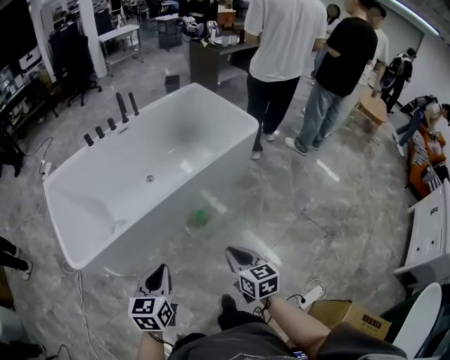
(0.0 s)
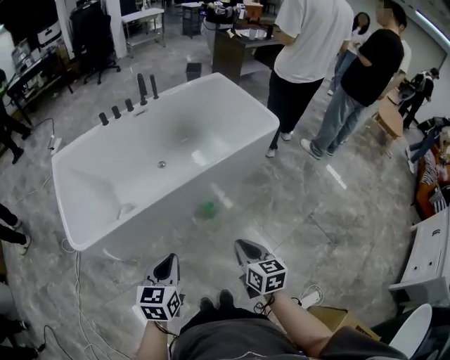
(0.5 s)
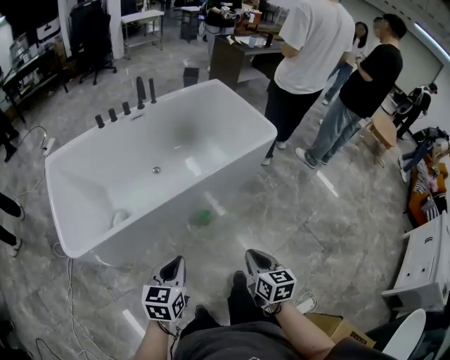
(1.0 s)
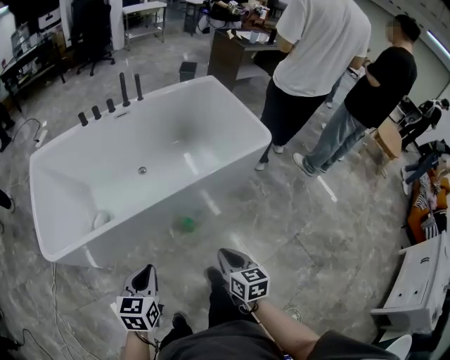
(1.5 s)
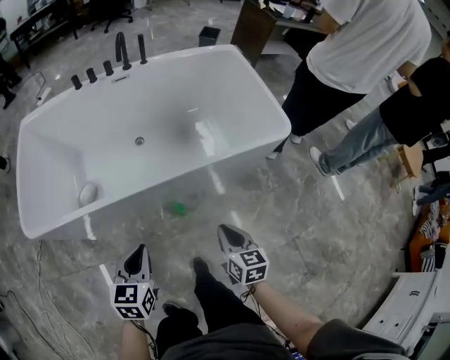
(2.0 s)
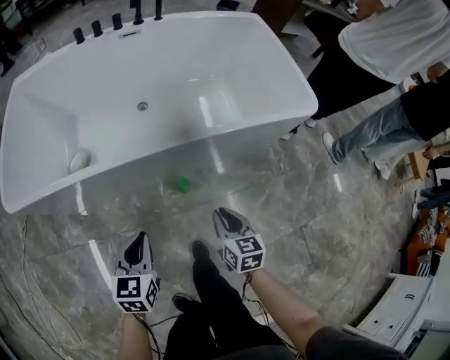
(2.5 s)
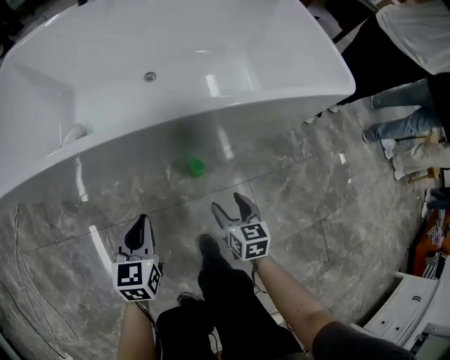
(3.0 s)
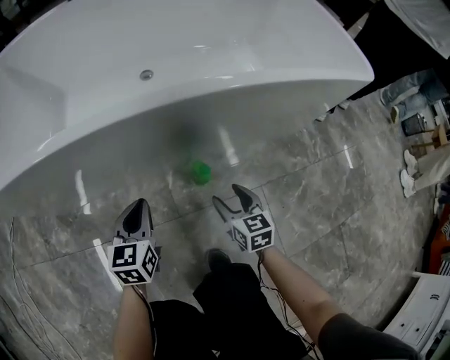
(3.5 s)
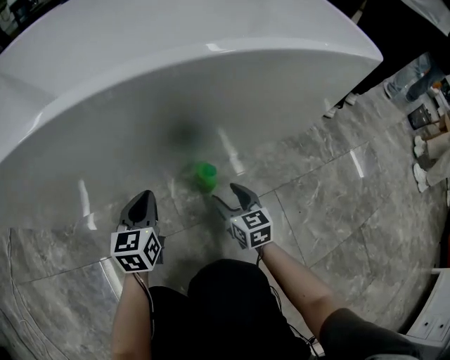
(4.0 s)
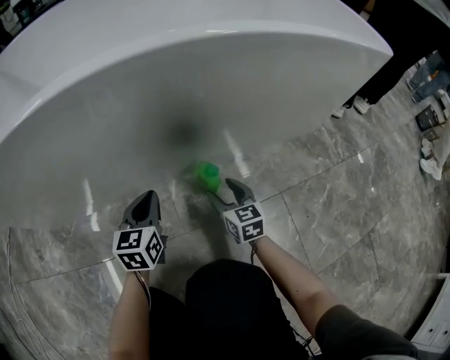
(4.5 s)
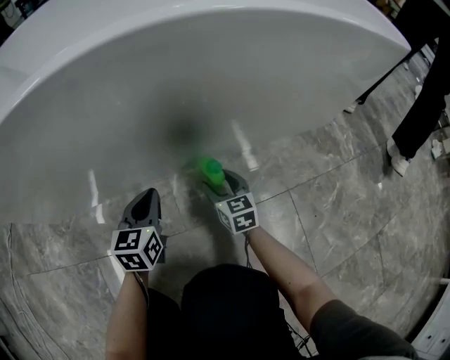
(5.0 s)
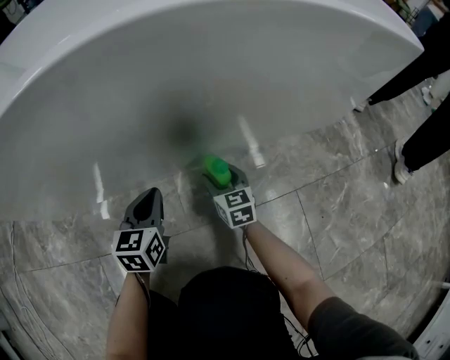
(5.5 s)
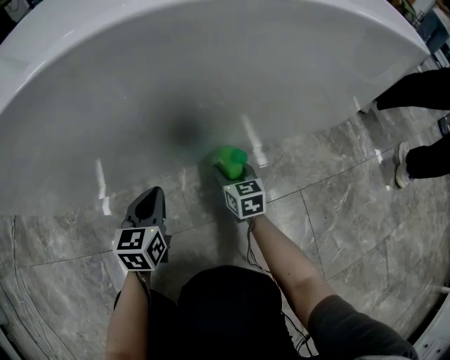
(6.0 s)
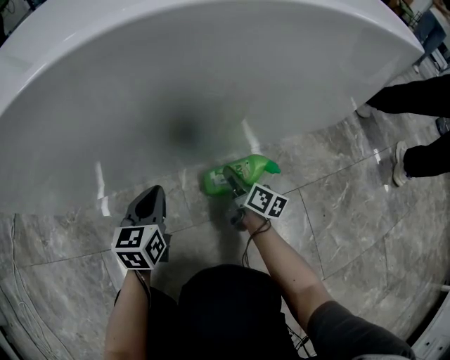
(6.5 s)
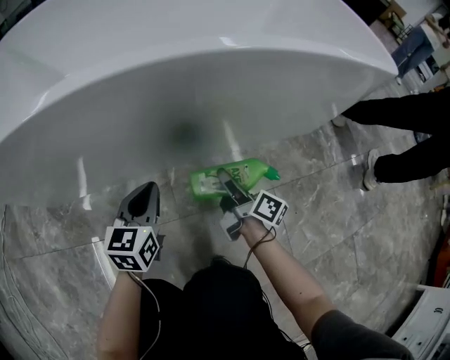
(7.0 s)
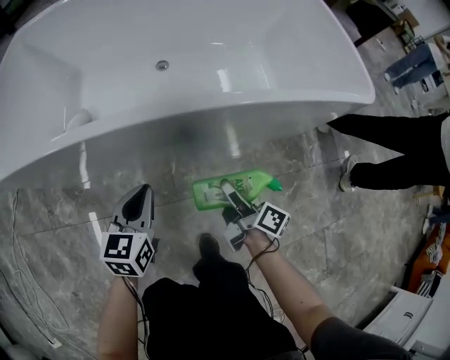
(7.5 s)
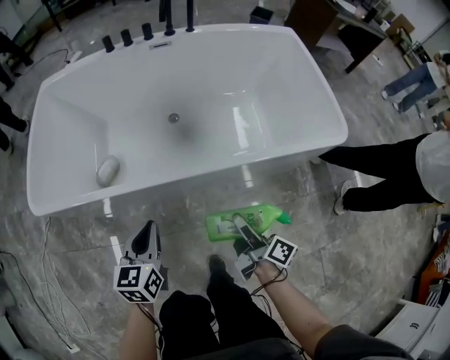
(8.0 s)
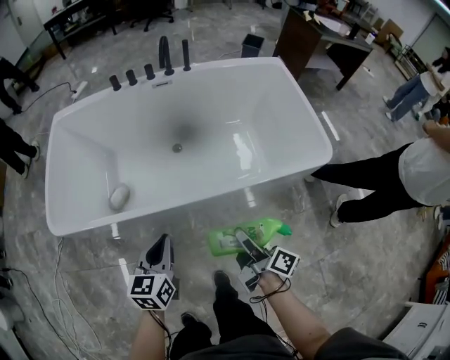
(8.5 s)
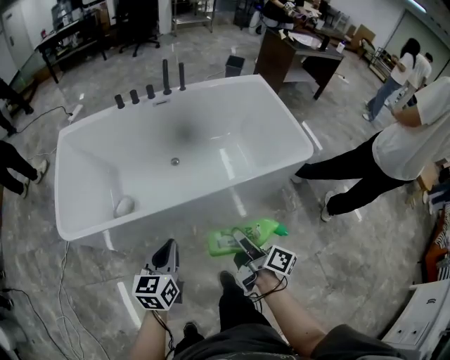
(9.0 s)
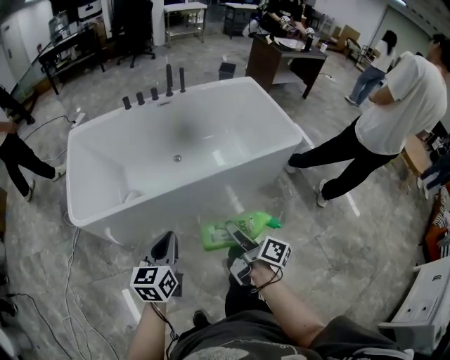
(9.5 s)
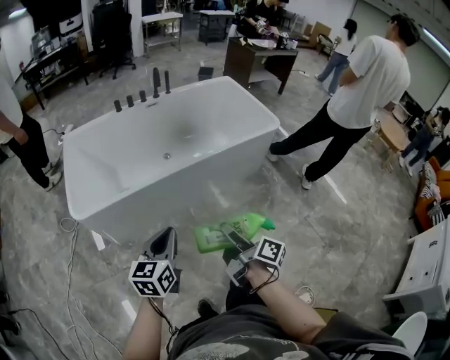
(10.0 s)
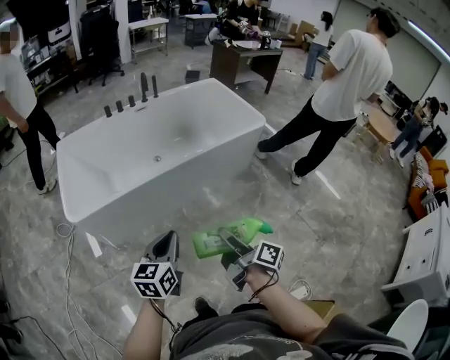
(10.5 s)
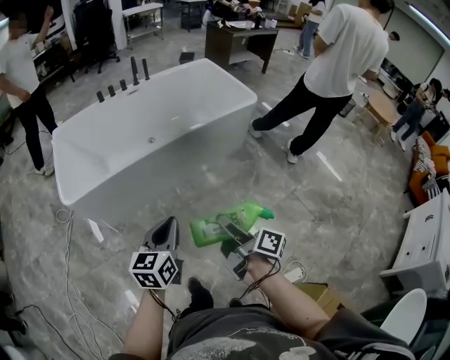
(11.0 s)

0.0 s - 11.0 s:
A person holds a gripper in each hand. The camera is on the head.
0.0 s - 2.0 s: The two grippers go about 30 cm forward, downward and to the right.
2.0 s - 3.5 s: Both grippers travel together downward, about 40 cm. The right gripper opens.
3.5 s - 5.5 s: The left gripper travels downward by roughly 15 cm; the right gripper moves downward and forward, some 25 cm.
5.5 s - 7.5 s: Both grippers travel together upward, some 30 cm. The right gripper rotates around the line of its fingers by about 60 degrees, clockwise from behind.
7.5 s - 9.0 s: Both grippers travel together upward, about 35 cm.
9.0 s - 11.0 s: The grippers both shift backward by about 35 cm.

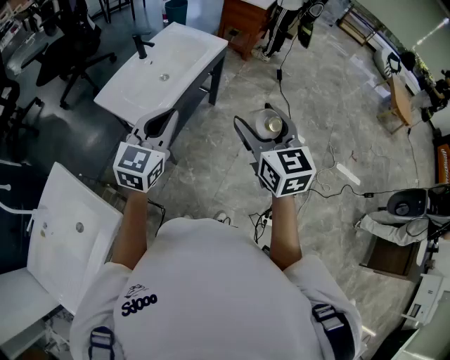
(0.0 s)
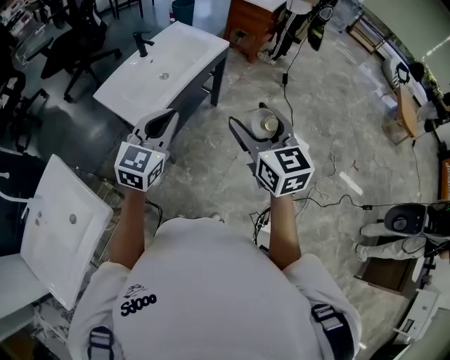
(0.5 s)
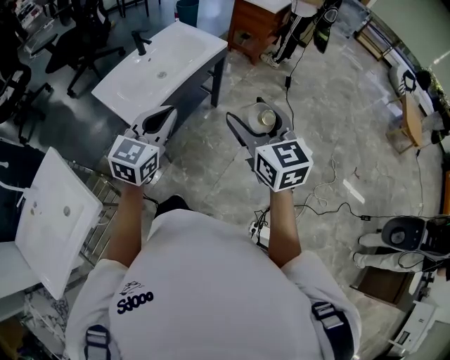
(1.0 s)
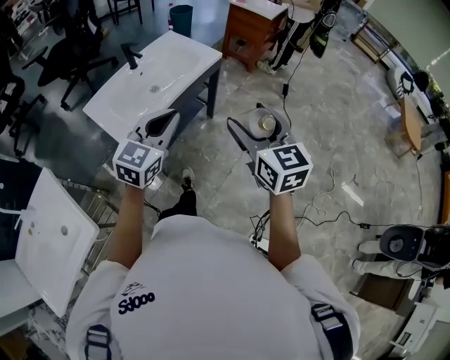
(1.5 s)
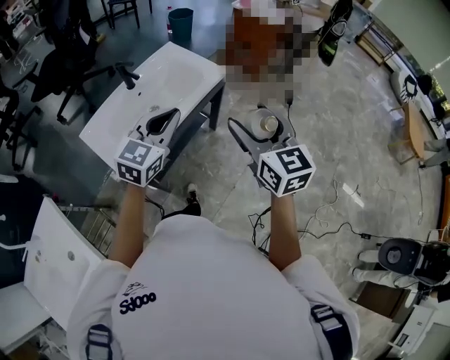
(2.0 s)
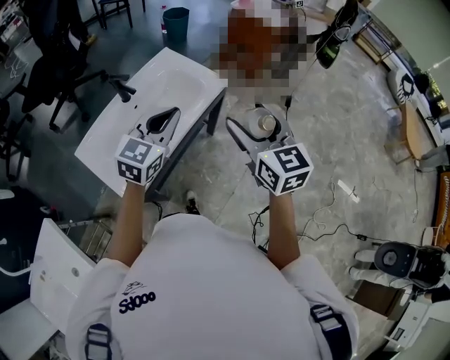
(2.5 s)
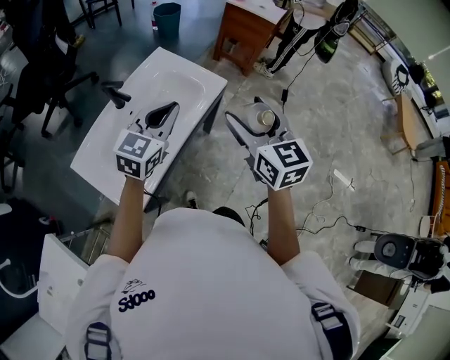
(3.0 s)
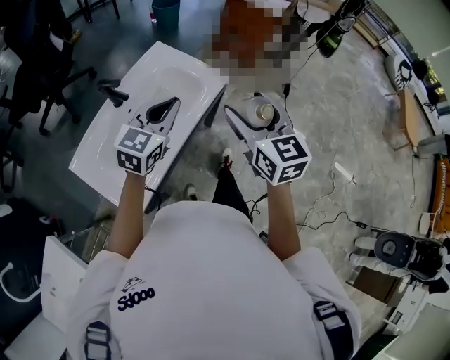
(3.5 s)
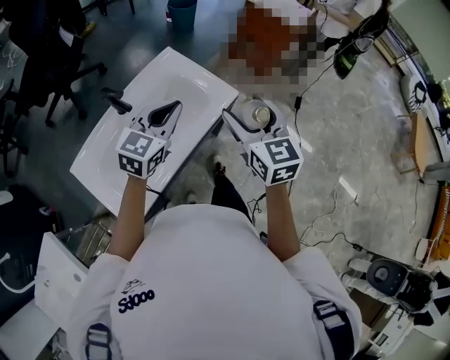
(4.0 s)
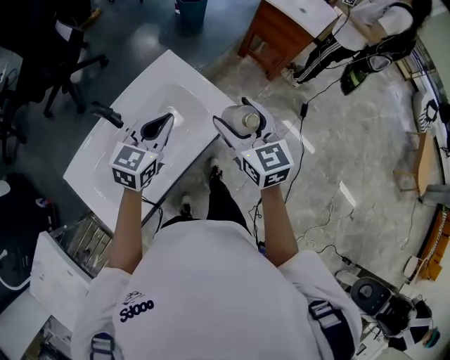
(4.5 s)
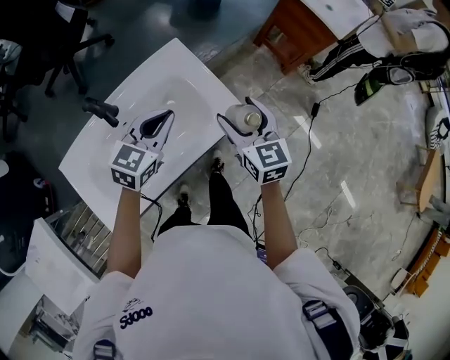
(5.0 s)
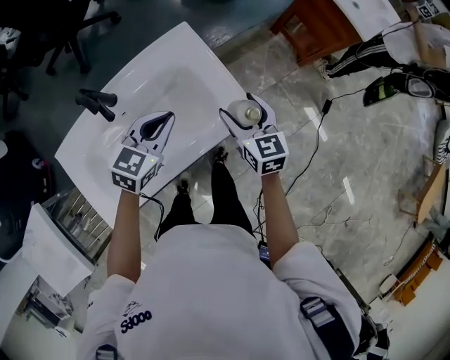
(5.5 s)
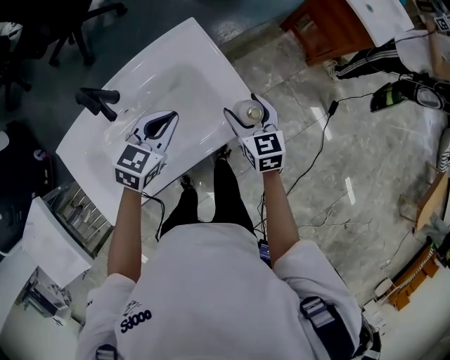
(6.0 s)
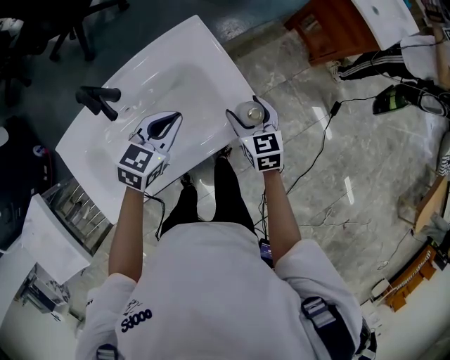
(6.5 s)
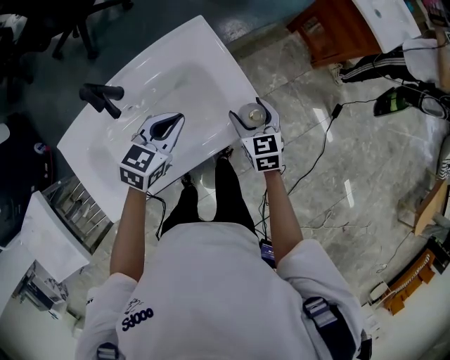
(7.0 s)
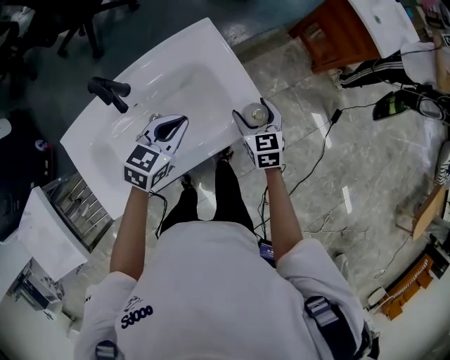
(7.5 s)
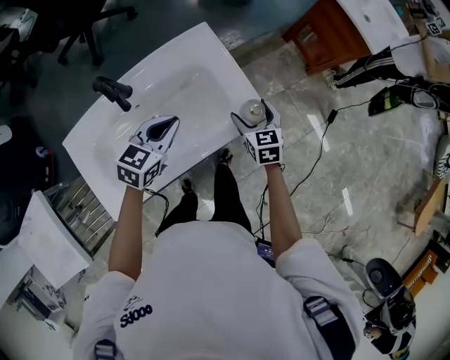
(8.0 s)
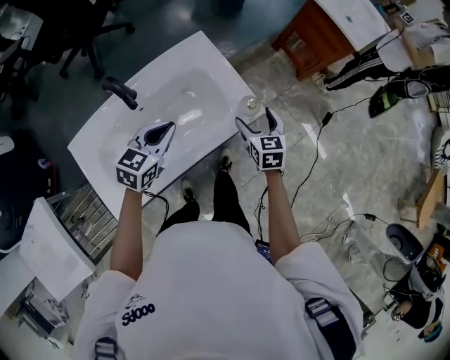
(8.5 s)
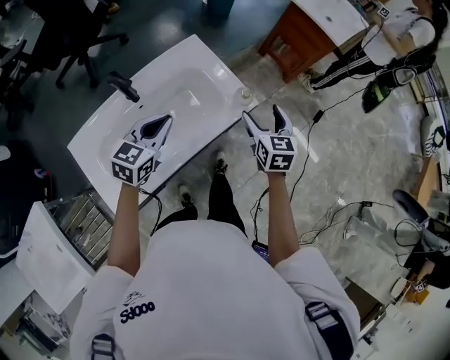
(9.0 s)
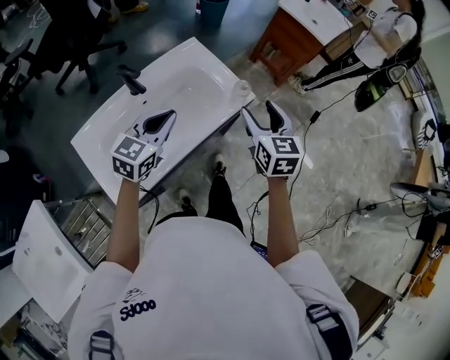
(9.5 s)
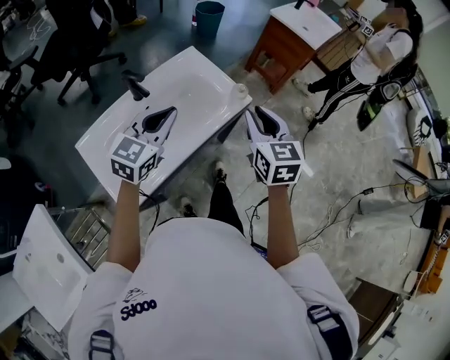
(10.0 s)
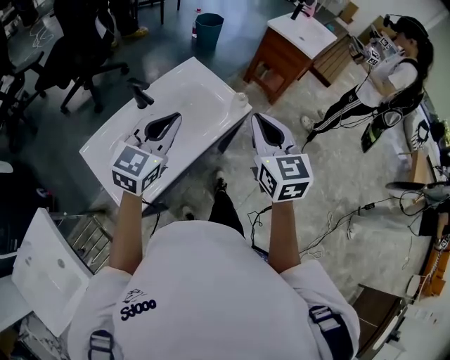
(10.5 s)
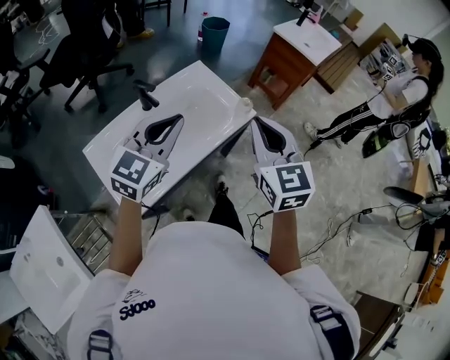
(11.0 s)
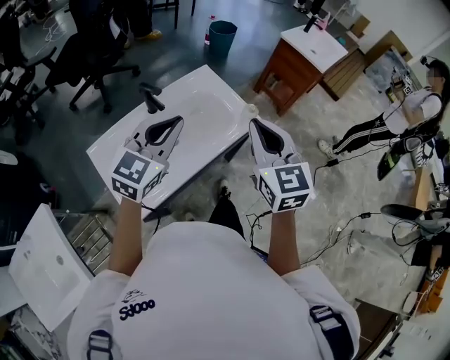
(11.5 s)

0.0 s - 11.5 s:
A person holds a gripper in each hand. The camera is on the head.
0.0 s - 2.0 s: Both grippers move forward, roughly 20 cm.
2.0 s - 4.0 s: Both grippers travel together forward, approximately 20 cm.
4.0 s - 6.0 s: The left gripper shifts some 15 cm downward and forward, and turns by roughly 30 degrees; the right gripper goes roughly 30 cm downward and forward, and turns by some 20 degrees.
6.0 s - 7.5 s: The grippers stay close to where they were, moving slightly.
7.5 s - 9.5 s: The left gripper is displaced upward and backward by some 15 cm; the right gripper moves upward and backward, approximately 25 cm, and changes its angle by about 20 degrees.
9.5 s - 11.5 s: The left gripper heads upward, covering roughly 15 cm. The right gripper heads upward, to the left and backward, covering roughly 15 cm, and closes.

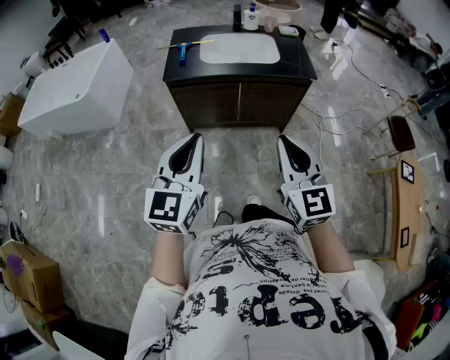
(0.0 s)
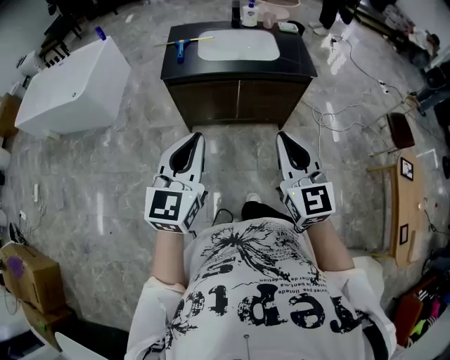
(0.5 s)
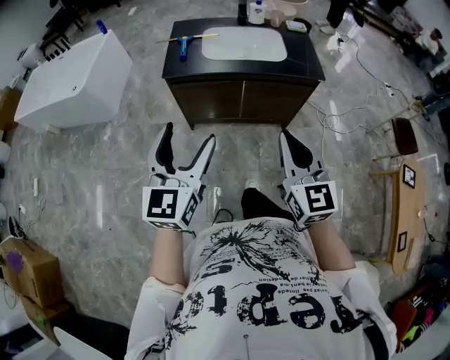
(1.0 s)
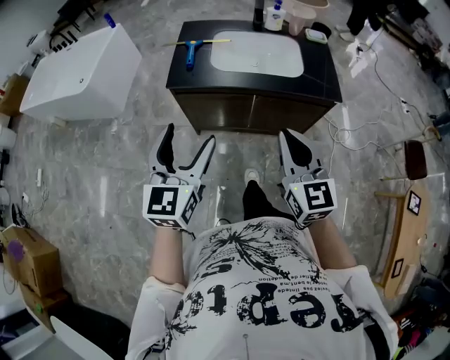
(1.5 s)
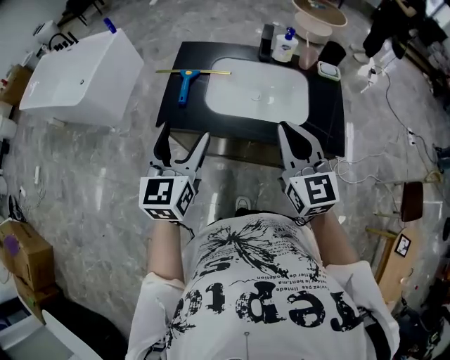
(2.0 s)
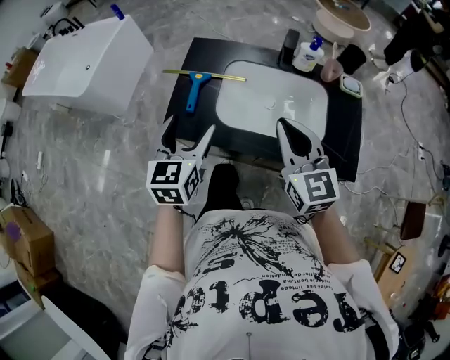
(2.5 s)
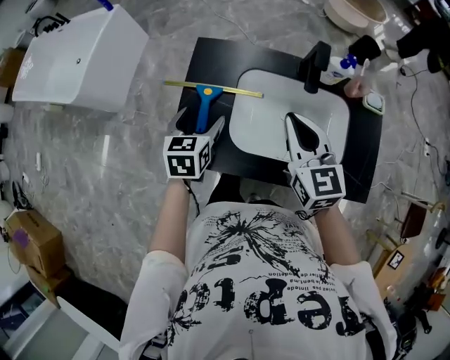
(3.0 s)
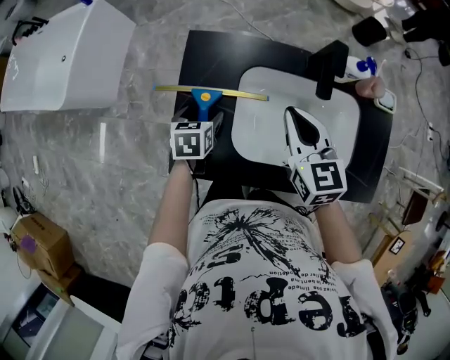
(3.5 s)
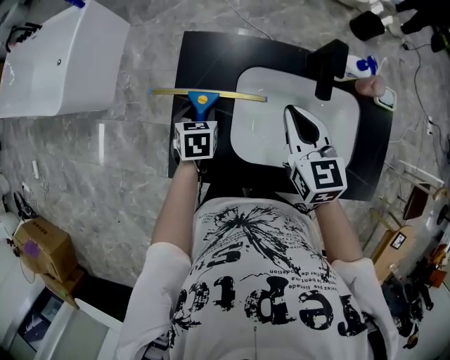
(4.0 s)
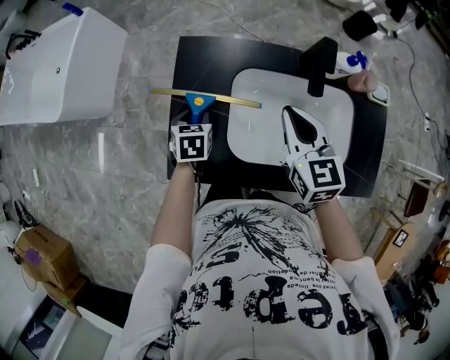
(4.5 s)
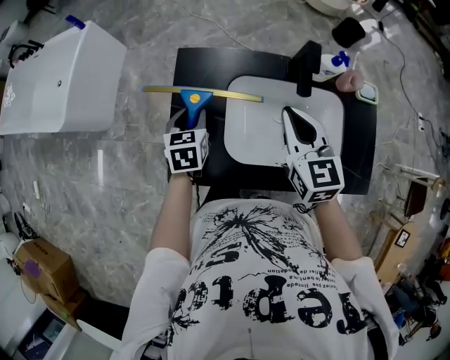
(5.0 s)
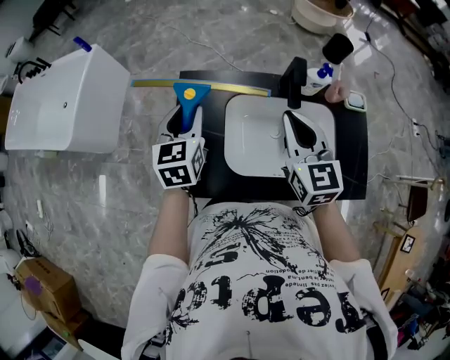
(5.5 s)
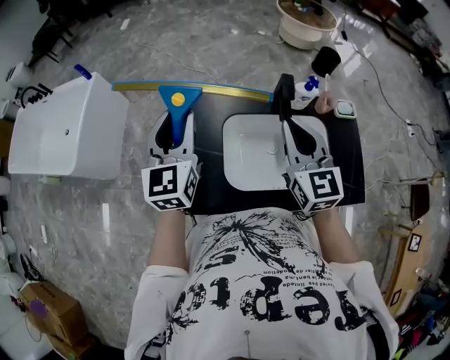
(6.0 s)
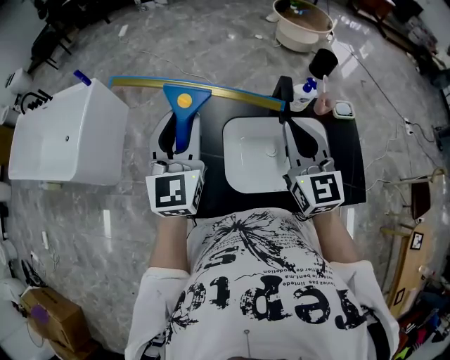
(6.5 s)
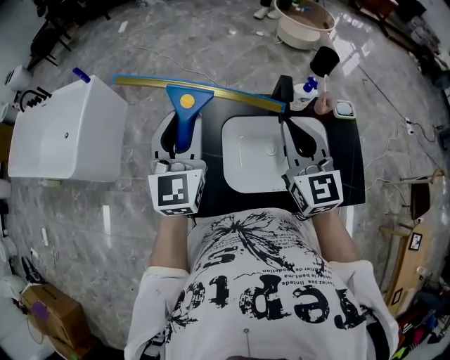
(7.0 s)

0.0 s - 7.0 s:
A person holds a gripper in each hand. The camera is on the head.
0.0 s - 2.0 s: The two grippers travel together, forward, some 50 cm. The left gripper opens up.
2.0 s - 3.5 s: Both grippers are carried forward, approximately 40 cm. The right gripper changes its angle by roughly 20 degrees, while the left gripper shifts roughly 30 cm downward, and points its fingers approximately 40 degrees further downward.
3.5 s - 5.0 s: The right gripper shifts by roughly 5 cm. The left gripper shifts roughly 10 cm upward, and closes up.
5.0 s - 7.0 s: The right gripper heads upward, covering roughly 10 cm; the left gripper travels upward by some 30 cm, and tilts its fingers approximately 40 degrees upward.
